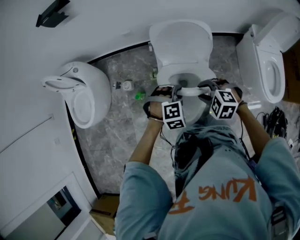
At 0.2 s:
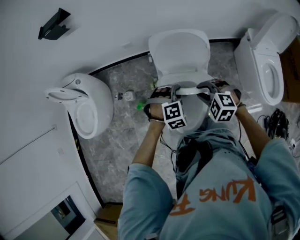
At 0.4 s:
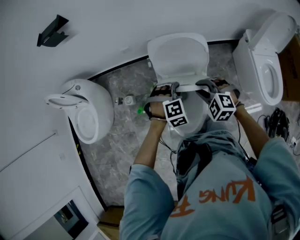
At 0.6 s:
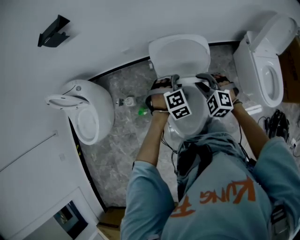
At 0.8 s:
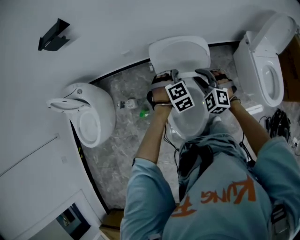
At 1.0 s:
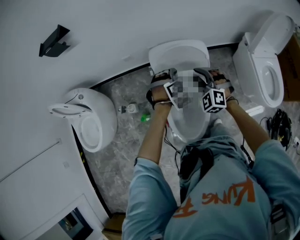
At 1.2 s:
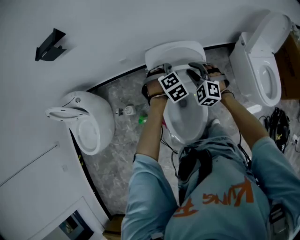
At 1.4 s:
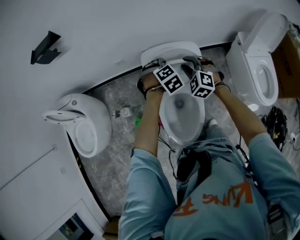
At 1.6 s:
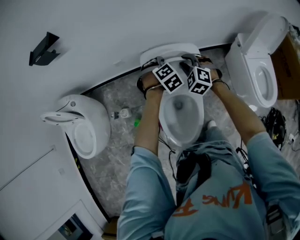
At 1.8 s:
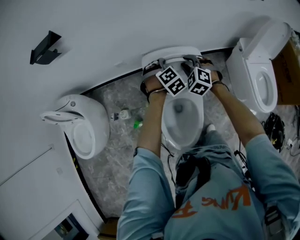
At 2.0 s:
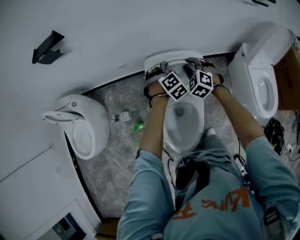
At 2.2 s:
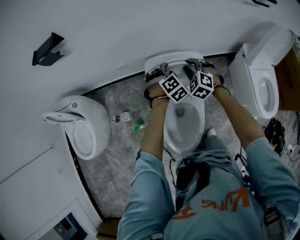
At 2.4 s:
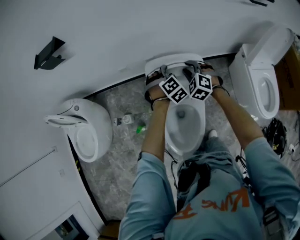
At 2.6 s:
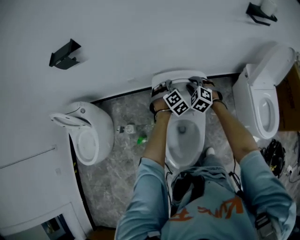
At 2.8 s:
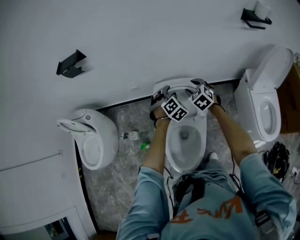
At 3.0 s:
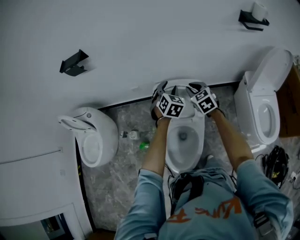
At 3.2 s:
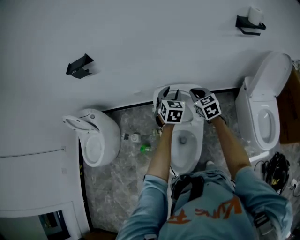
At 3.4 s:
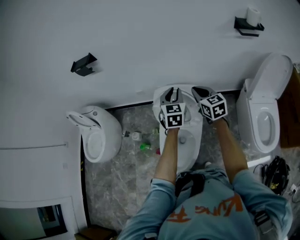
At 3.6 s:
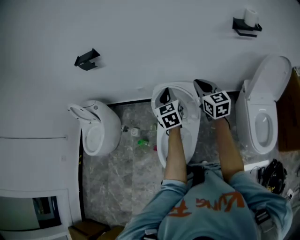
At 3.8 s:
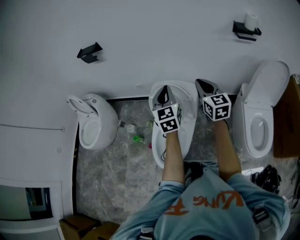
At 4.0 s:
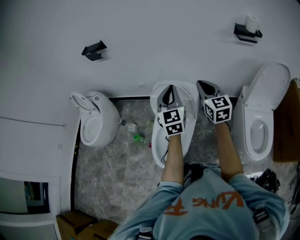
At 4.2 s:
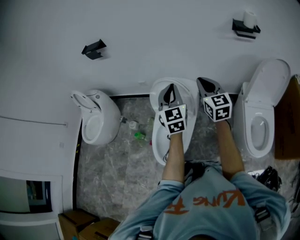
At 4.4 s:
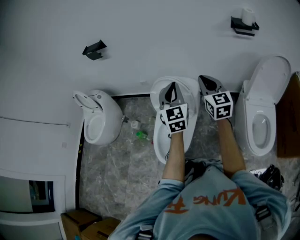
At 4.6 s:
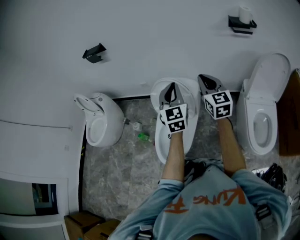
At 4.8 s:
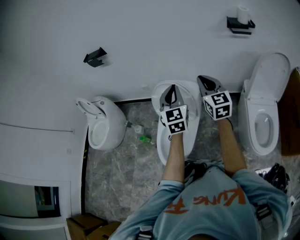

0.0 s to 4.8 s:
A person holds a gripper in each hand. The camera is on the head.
0.0 to 1.6 s: The grippers both shift forward by approximately 25 cm. The right gripper changes its angle by about 40 degrees.
1.6 to 3.2 s: The left gripper moves upward, approximately 15 cm, and rotates around the line of its fingers by approximately 40 degrees, counterclockwise from behind. The right gripper goes some 10 cm upward and to the right, and rolls clockwise, seen from behind, by approximately 40 degrees.
3.2 to 4.8 s: The right gripper heads upward, backward and to the right, covering approximately 25 cm, and rotates approximately 20 degrees. The left gripper moves backward and upward, about 25 cm, changes its angle by about 30 degrees, and closes up.

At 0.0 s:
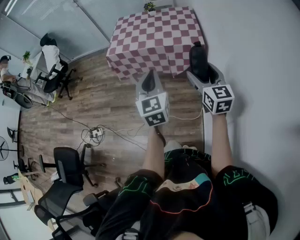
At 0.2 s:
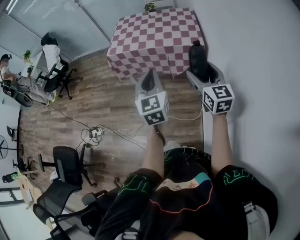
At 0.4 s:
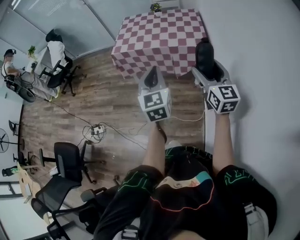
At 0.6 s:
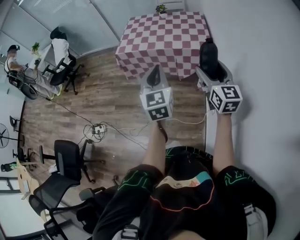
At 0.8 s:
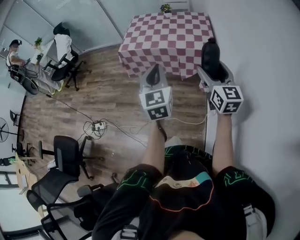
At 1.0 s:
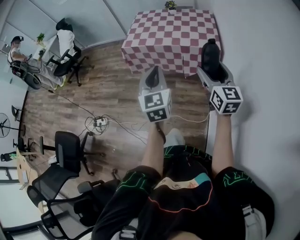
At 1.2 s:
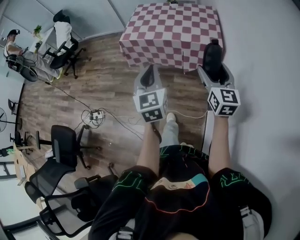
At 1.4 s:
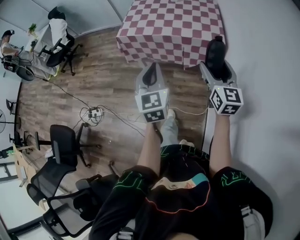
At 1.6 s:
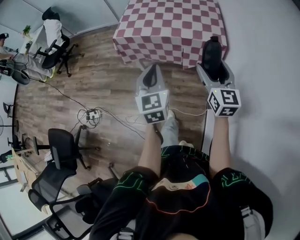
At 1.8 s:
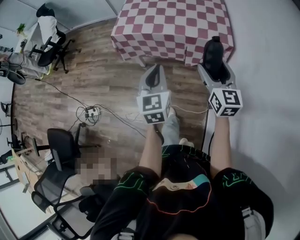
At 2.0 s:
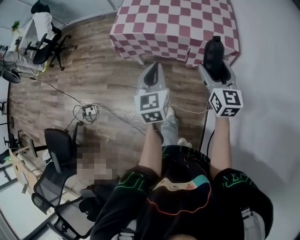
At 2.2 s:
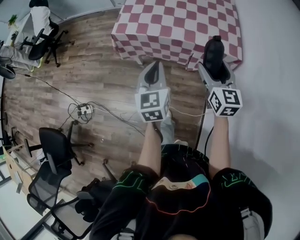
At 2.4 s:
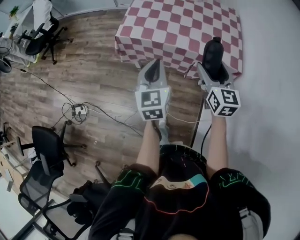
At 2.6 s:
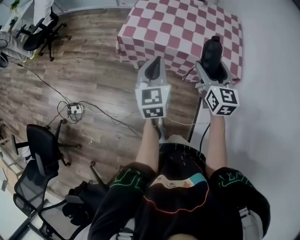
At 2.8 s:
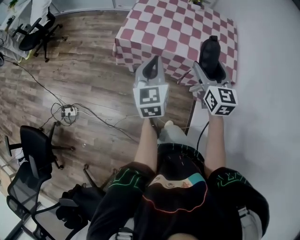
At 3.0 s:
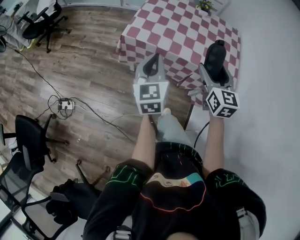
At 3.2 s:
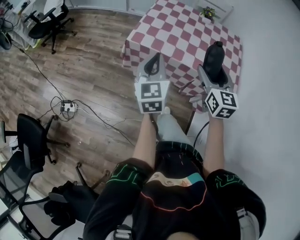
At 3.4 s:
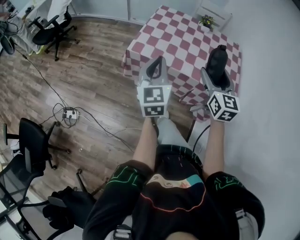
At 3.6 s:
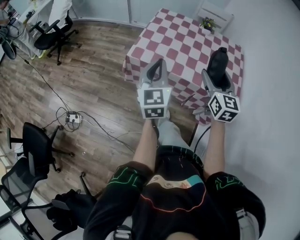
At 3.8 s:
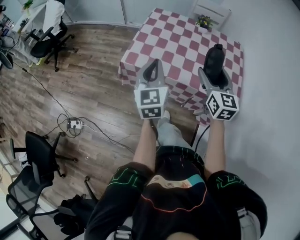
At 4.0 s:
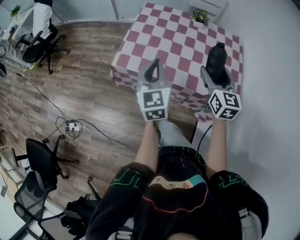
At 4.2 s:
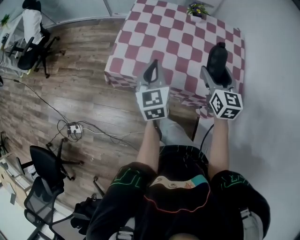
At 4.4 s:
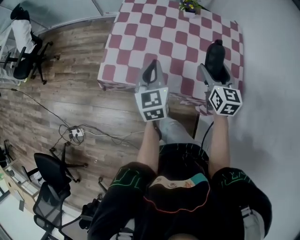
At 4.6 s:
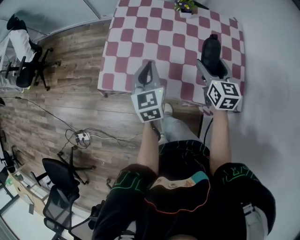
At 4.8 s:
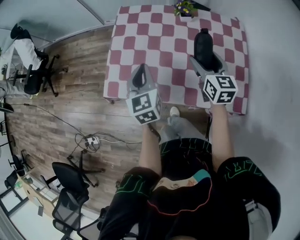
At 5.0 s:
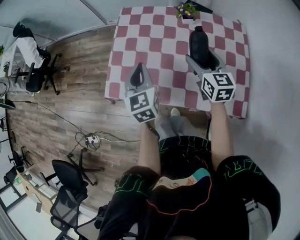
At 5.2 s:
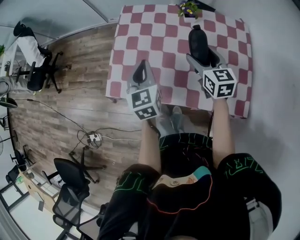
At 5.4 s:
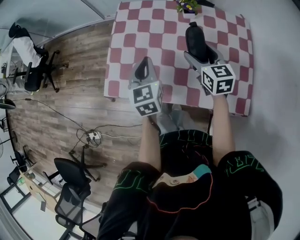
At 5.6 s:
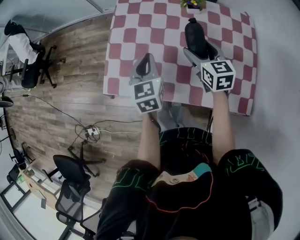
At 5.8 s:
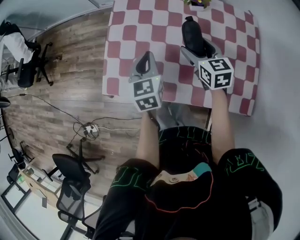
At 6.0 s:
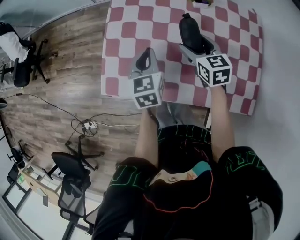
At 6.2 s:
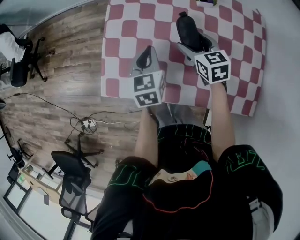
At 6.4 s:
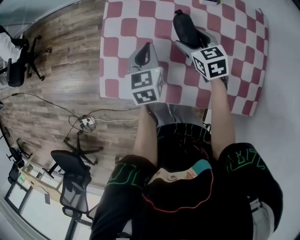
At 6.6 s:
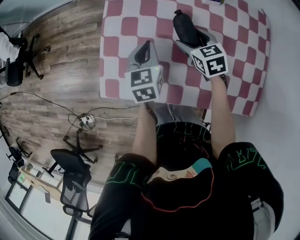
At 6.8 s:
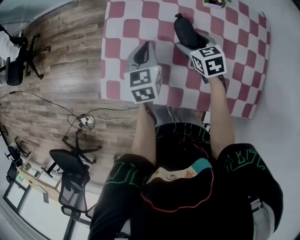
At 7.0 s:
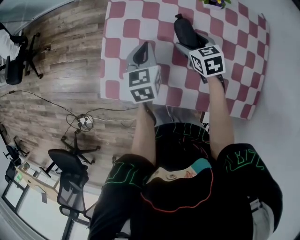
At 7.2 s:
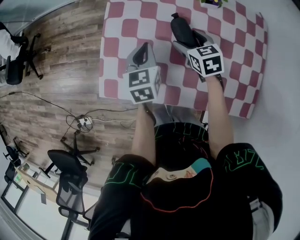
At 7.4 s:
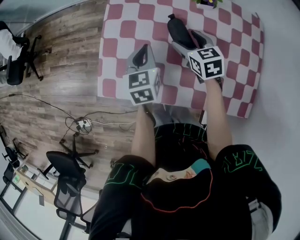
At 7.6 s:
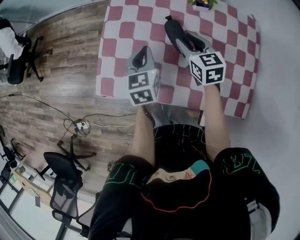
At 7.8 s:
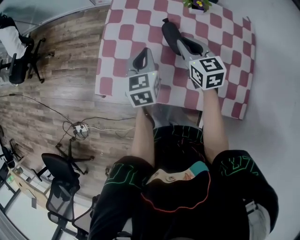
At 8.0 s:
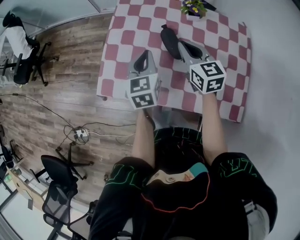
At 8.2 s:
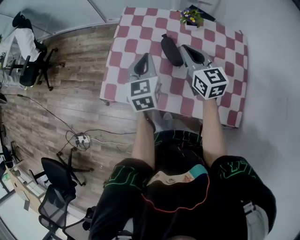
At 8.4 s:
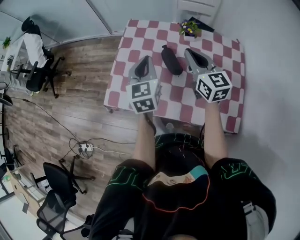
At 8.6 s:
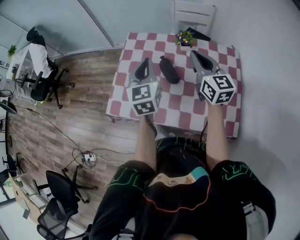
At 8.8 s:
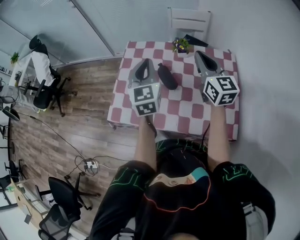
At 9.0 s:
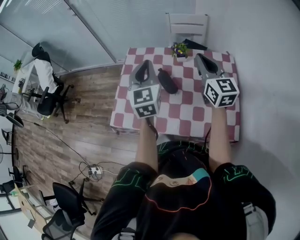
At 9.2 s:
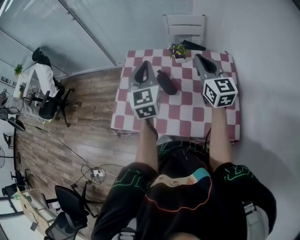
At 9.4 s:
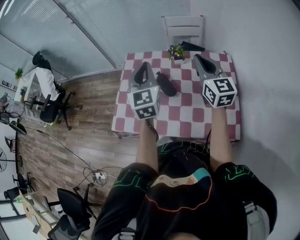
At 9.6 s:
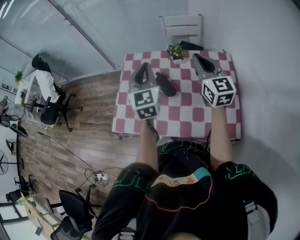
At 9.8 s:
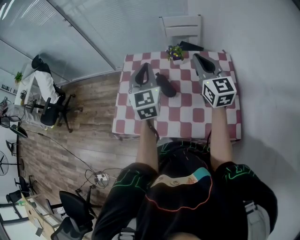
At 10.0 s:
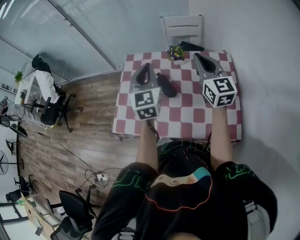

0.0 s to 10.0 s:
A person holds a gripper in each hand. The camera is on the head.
0.0 to 1.4 s: The right gripper is displaced forward by some 5 cm, while the left gripper is displaced to the left by about 5 cm.
1.4 to 2.8 s: The two grippers go approximately 25 cm forward and to the left.
2.8 to 4.2 s: The left gripper shifts approximately 20 cm forward; the right gripper moves forward and to the right, approximately 20 cm.
4.2 to 5.8 s: Both grippers move forward and downward, roughly 20 cm.
5.8 to 7.2 s: The left gripper is displaced forward and downward by roughly 10 cm, while the right gripper moves downward and forward, roughly 10 cm.
7.2 to 8.6 s: The grippers both shift upward by about 20 cm. The right gripper tilts its fingers about 40 degrees upward, and closes its fingers; the left gripper turns by approximately 30 degrees.
8.6 to 10.0 s: The left gripper is displaced upward and to the right by approximately 10 cm; the right gripper heads to the right, covering about 5 cm.

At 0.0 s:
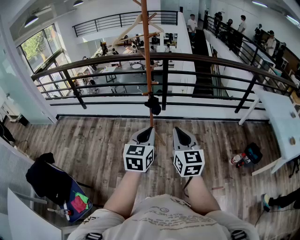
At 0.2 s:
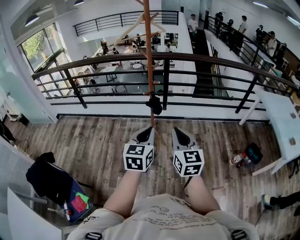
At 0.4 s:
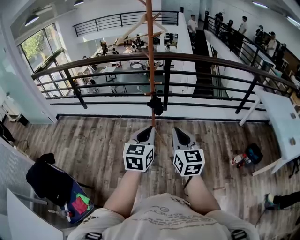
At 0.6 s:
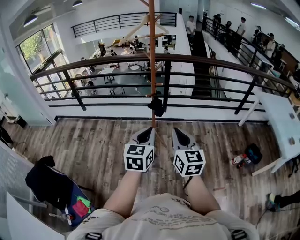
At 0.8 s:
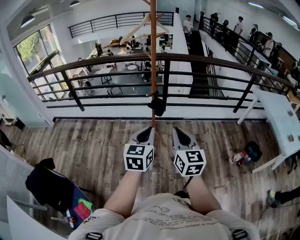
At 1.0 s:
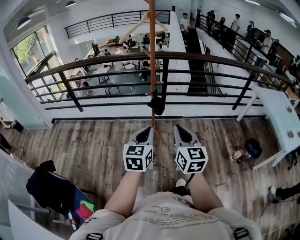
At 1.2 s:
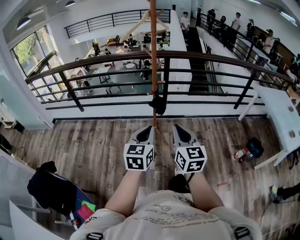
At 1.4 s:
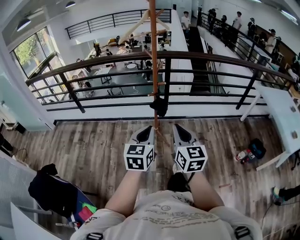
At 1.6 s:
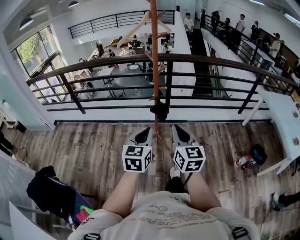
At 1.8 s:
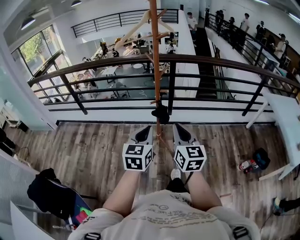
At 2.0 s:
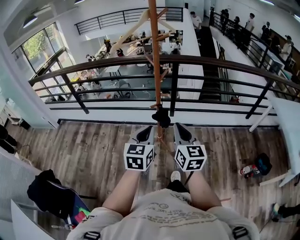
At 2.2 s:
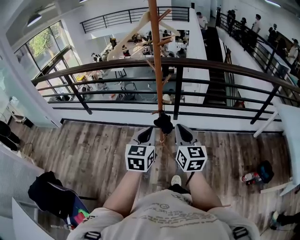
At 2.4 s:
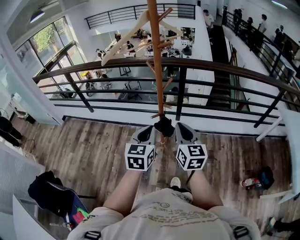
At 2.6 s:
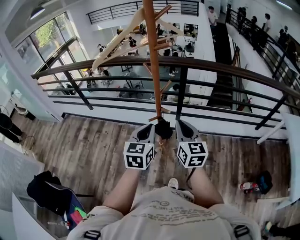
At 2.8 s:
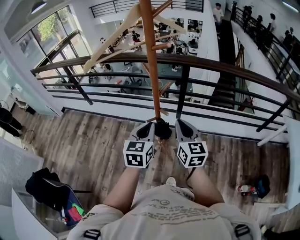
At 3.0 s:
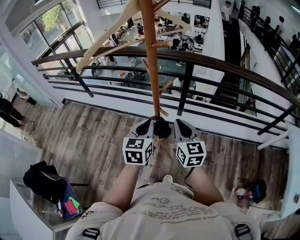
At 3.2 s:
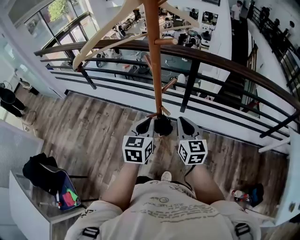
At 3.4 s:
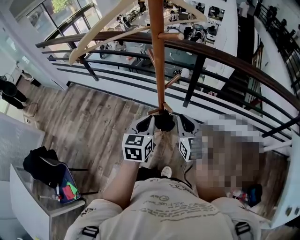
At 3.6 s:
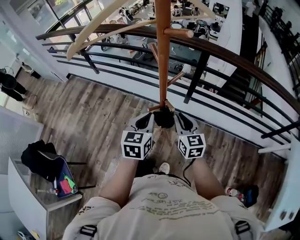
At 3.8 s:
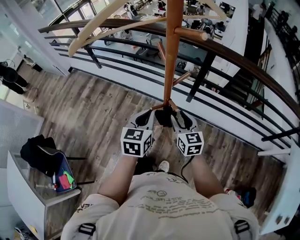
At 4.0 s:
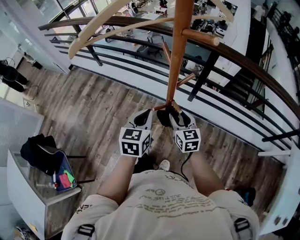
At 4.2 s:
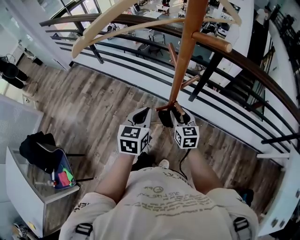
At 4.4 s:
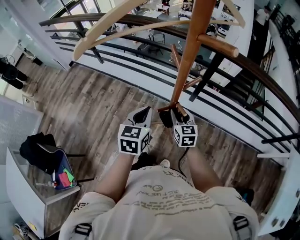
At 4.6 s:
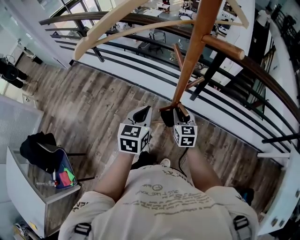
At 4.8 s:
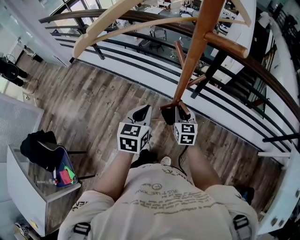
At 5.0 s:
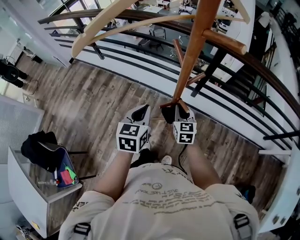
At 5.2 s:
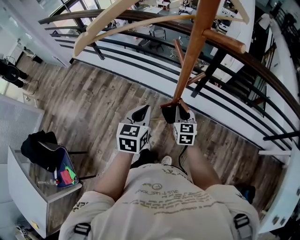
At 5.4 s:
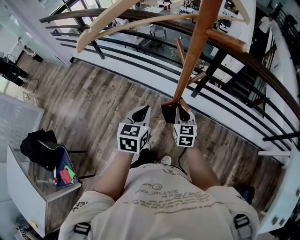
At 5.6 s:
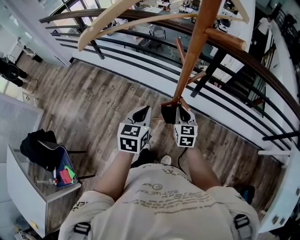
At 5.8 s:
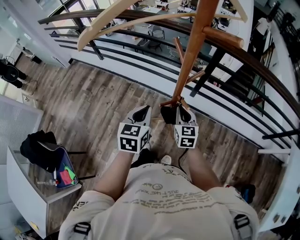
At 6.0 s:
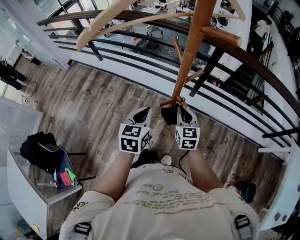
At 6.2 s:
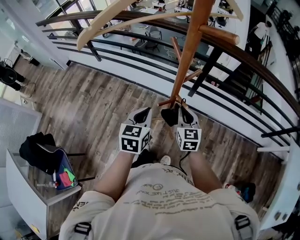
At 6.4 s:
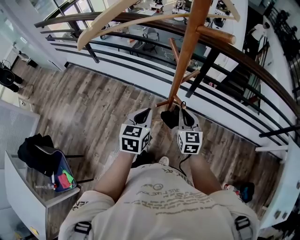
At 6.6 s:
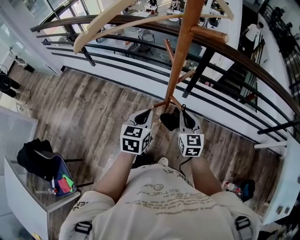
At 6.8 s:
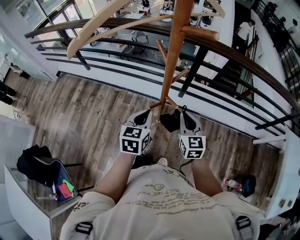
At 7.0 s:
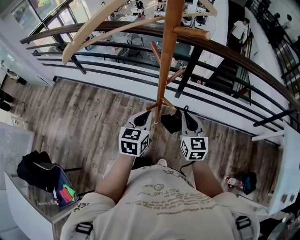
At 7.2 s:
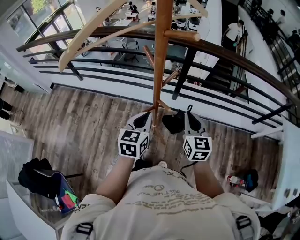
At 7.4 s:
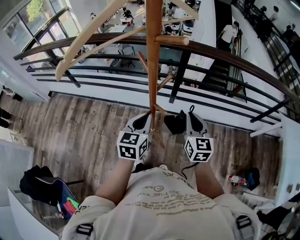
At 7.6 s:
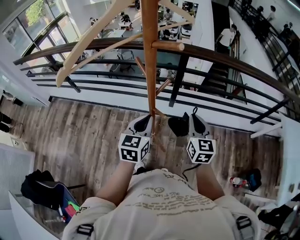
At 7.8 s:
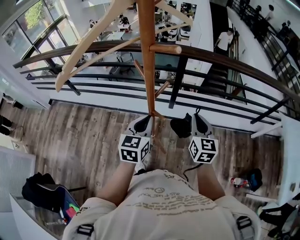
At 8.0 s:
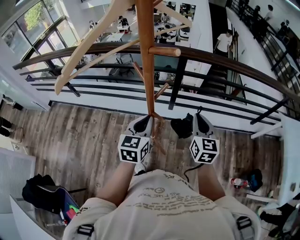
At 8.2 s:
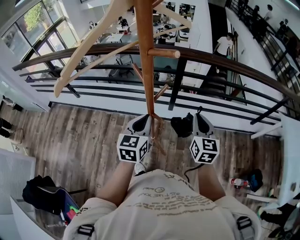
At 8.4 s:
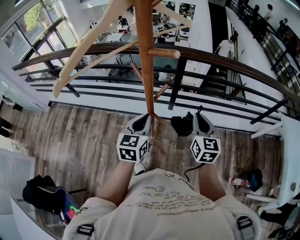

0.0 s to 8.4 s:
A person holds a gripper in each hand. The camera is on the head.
0.0 to 1.4 s: Both grippers move to the left and forward, about 10 cm.
1.4 to 2.8 s: The grippers both shift forward by approximately 35 cm.
2.8 to 4.2 s: The right gripper travels downward and forward by about 25 cm, rotates some 20 degrees, and opens its fingers, while the left gripper shifts some 15 cm forward, downward and to the left.
4.2 to 5.6 s: The right gripper closes up.
5.6 to 7.0 s: The left gripper moves to the right, roughly 5 cm, while the right gripper moves upward and to the right, some 10 cm.
7.0 to 8.4 s: The right gripper travels to the right and upward by approximately 10 cm. Meanwhile the left gripper goes approximately 5 cm upward.
